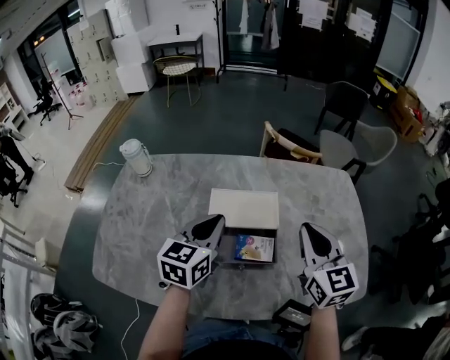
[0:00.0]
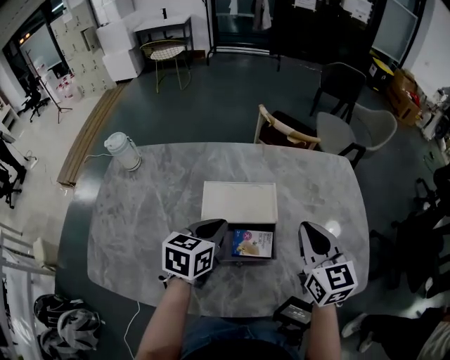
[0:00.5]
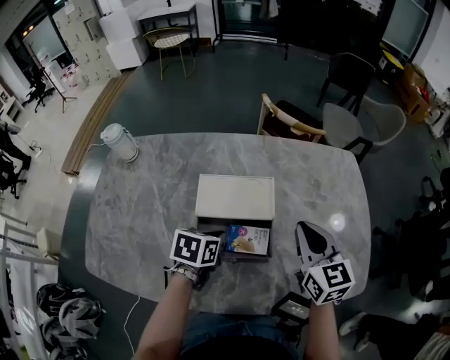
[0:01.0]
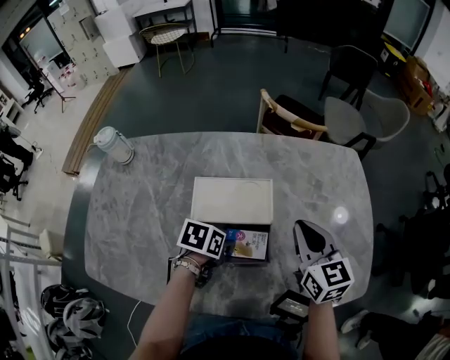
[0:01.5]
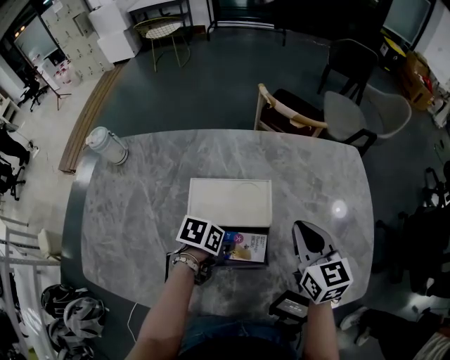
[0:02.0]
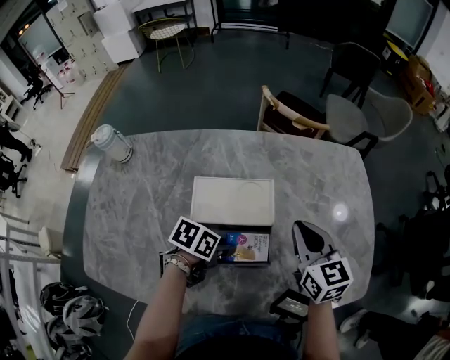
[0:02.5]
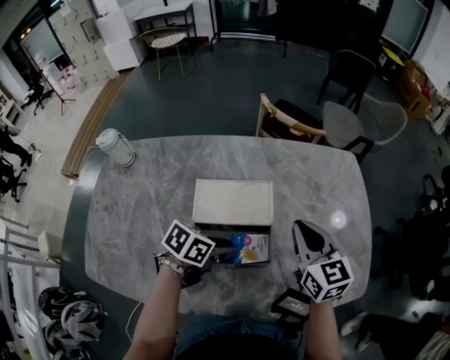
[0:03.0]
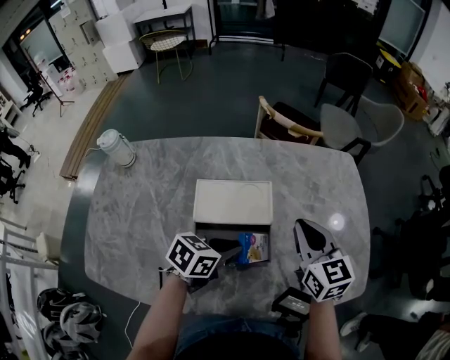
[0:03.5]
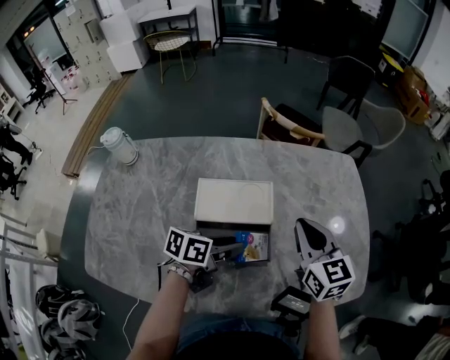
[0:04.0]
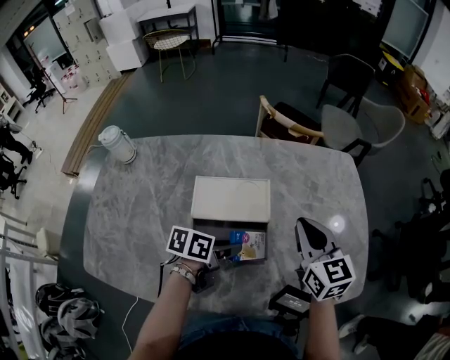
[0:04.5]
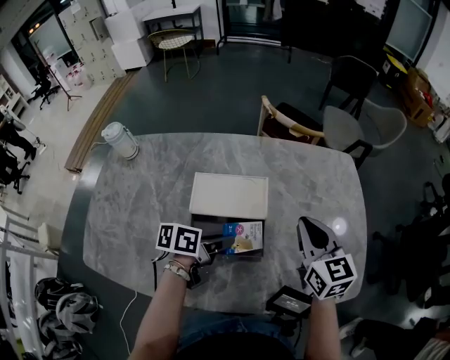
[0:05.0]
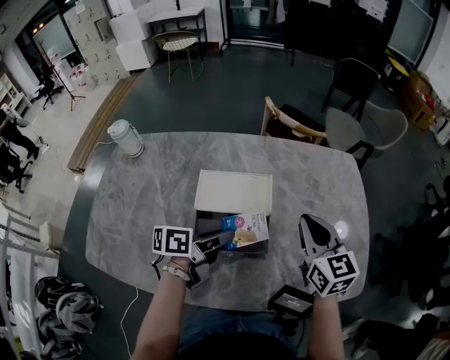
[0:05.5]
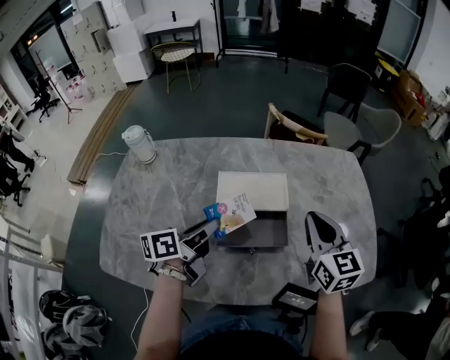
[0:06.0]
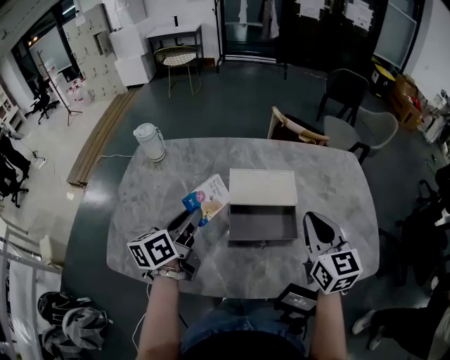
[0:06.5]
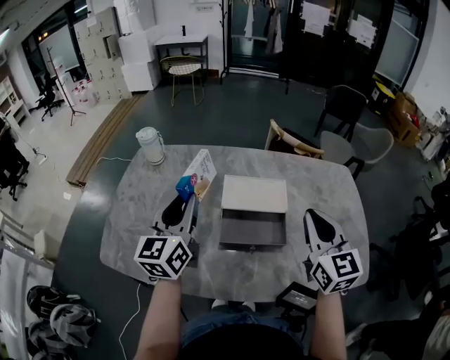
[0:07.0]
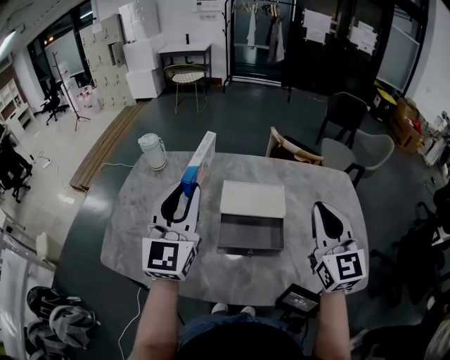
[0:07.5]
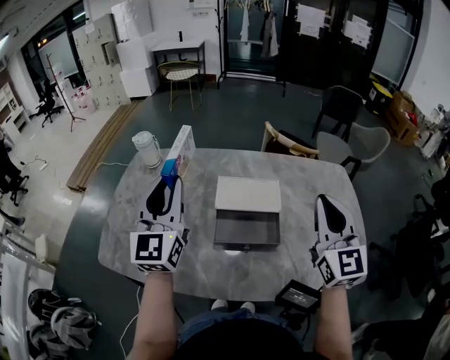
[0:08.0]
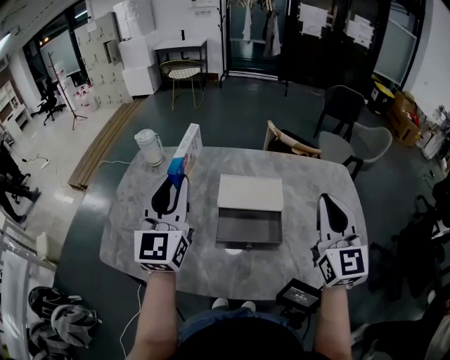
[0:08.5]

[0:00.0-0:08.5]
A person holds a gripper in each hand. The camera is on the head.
0:00.0 to 0:02.0: The right gripper is displaced downward by roughly 10 cm. Meanwhile the left gripper goes some 20 cm downward, tips its fingers downward by roughly 40 degrees, and opens up.
0:02.0 to 0:04.0: The left gripper is displaced upward by roughly 10 cm, changes its angle by approximately 30 degrees, and closes and opens again.
0:04.0 to 0:06.5: The left gripper moves to the left and upward, approximately 25 cm, and rotates roughly 40 degrees, while the right gripper travels backward by approximately 10 cm.
0:06.5 to 0:08.5: The right gripper moves upward and to the right, approximately 10 cm, and swivels approximately 20 degrees; the left gripper heads upward, covering roughly 15 cm, and rotates around the line of its fingers by roughly 50 degrees, clockwise from behind.

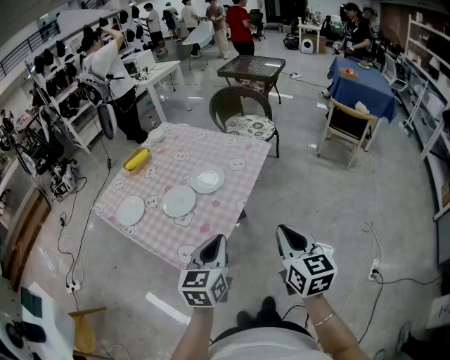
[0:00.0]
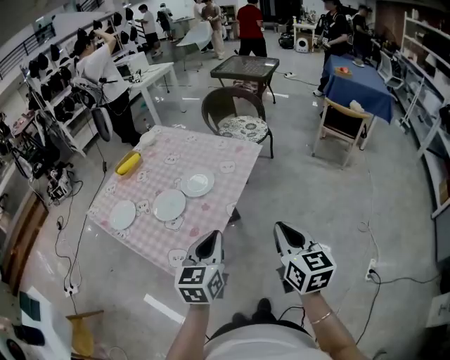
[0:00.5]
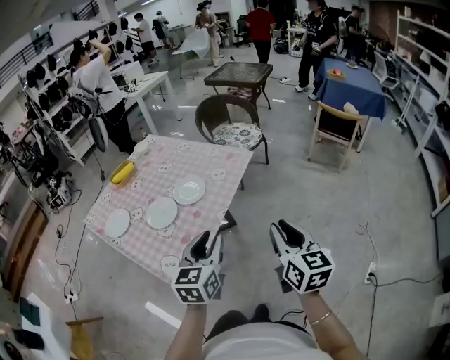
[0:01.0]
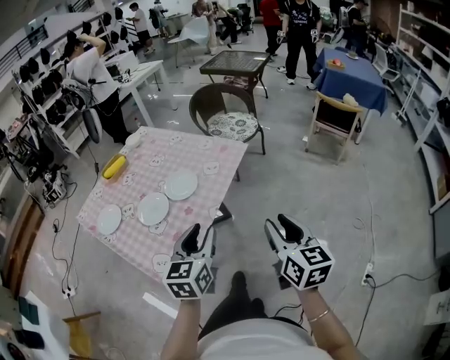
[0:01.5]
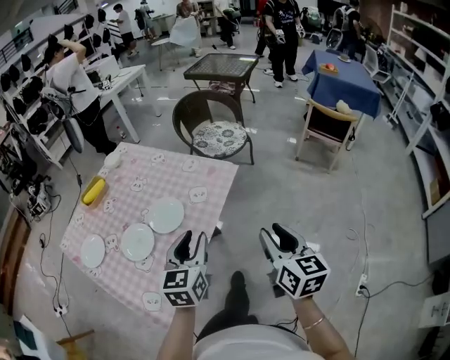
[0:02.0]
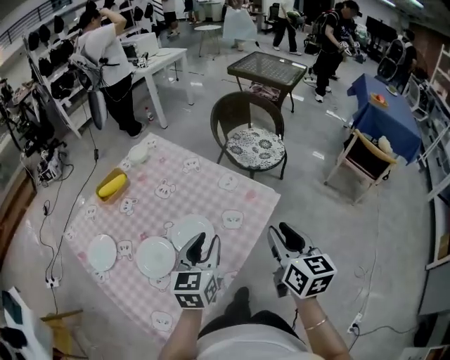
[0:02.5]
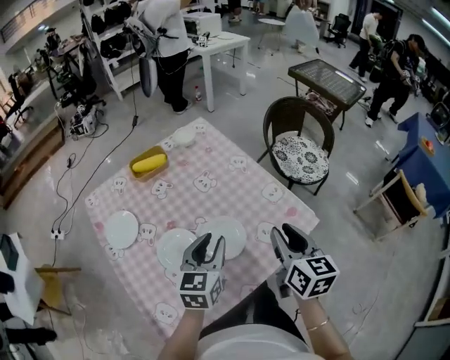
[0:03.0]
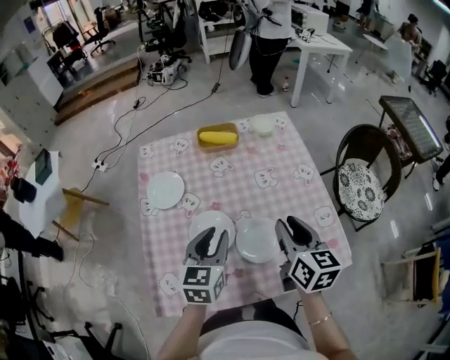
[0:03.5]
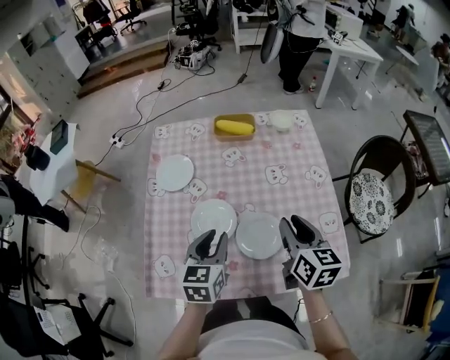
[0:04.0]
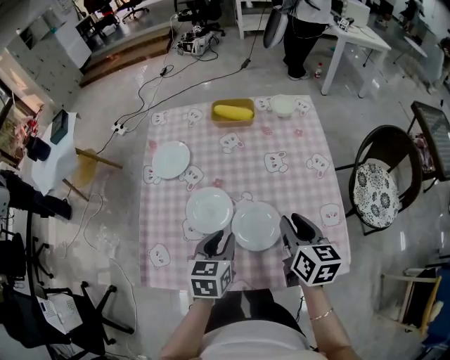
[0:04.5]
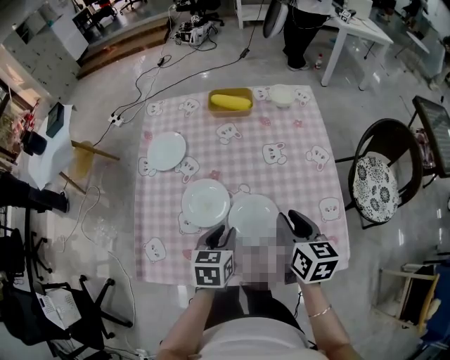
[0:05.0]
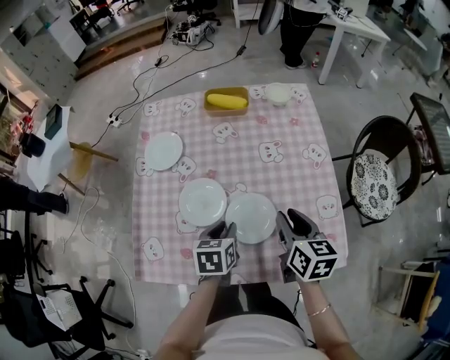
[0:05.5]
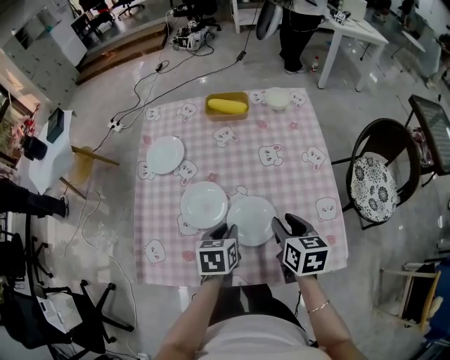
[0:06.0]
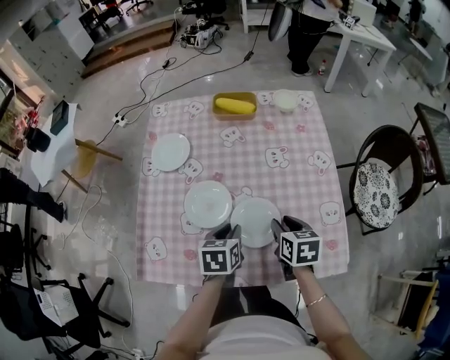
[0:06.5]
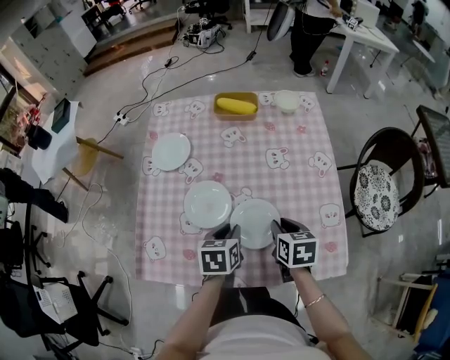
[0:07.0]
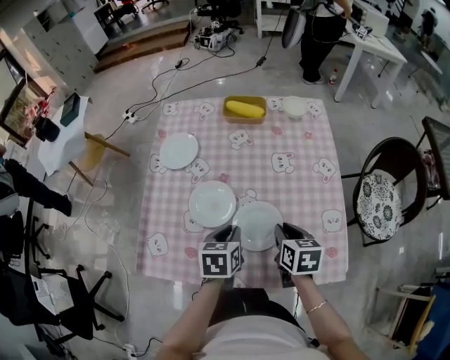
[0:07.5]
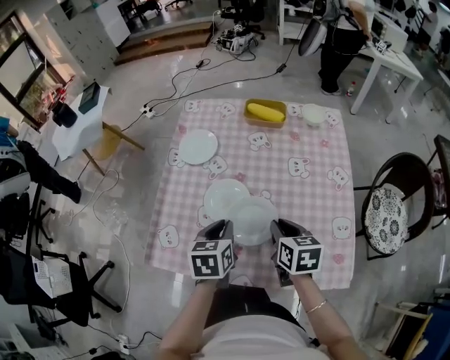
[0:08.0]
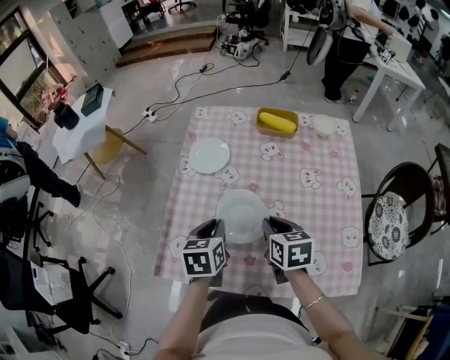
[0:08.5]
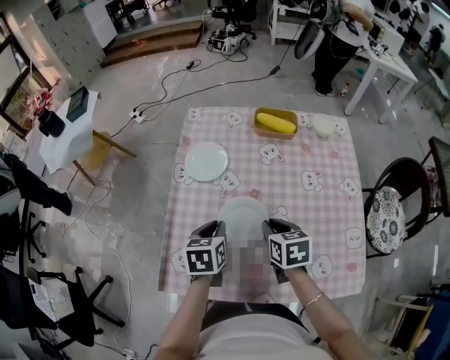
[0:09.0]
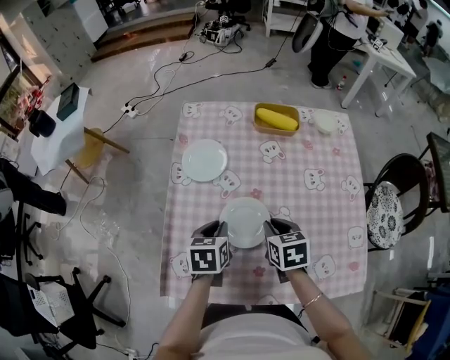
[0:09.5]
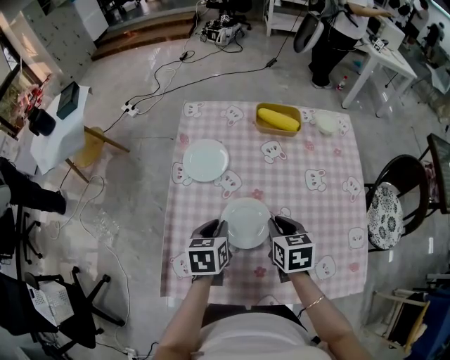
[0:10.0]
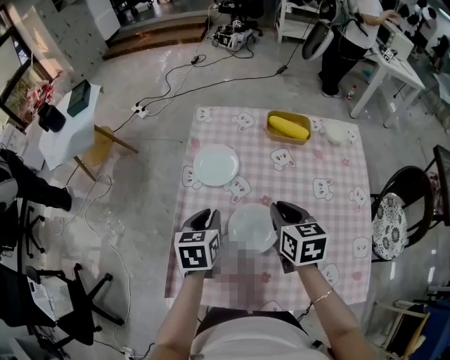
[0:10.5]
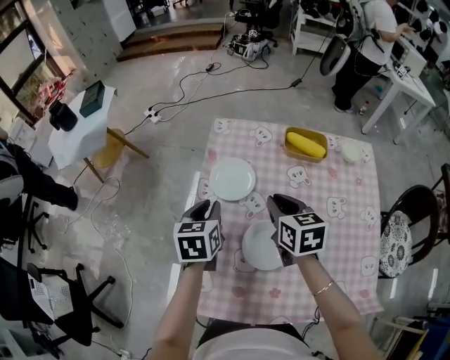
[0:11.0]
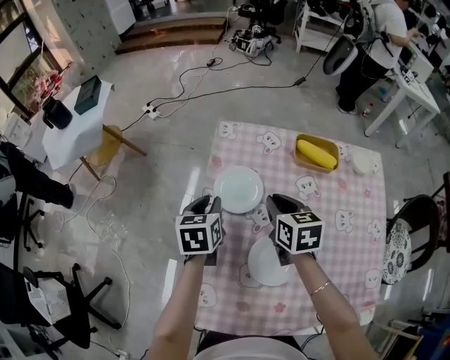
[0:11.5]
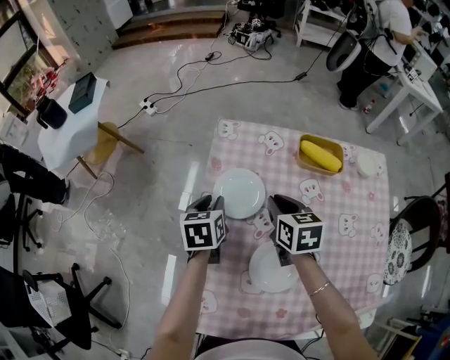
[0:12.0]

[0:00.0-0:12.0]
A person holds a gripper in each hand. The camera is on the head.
0:00.0 to 0:02.0: The right gripper shifts roughly 25 cm forward and to the right, and opens; the left gripper moves forward, some 20 cm, and opens.
0:02.0 to 0:04.0: The left gripper moves roughly 30 cm, and changes its angle by about 60 degrees; the right gripper ends up about 50 cm from where it was, and changes its angle by about 60 degrees.
0:04.0 to 0:06.0: The left gripper is displaced downward and to the right by some 10 cm, and changes its angle by approximately 20 degrees. Meanwhile the right gripper goes roughly 10 cm downward.
0:06.0 to 0:08.0: The right gripper shifts about 5 cm to the left. The left gripper travels upward and to the left by about 10 cm.
0:08.0 to 0:10.0: The two grippers go about 15 cm forward and to the left.
0:10.0 to 0:12.0: The two grippers go approximately 25 cm forward and to the left.

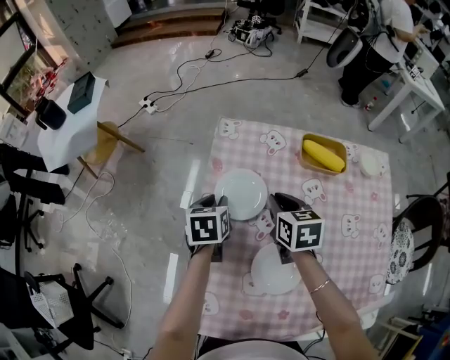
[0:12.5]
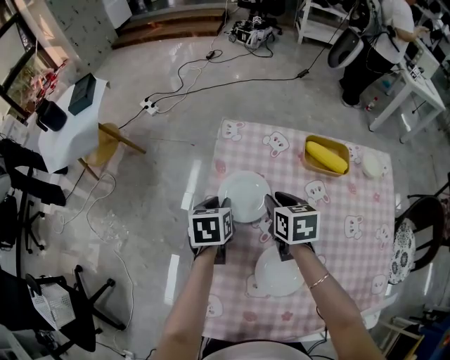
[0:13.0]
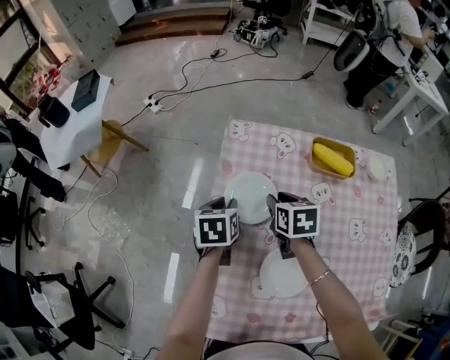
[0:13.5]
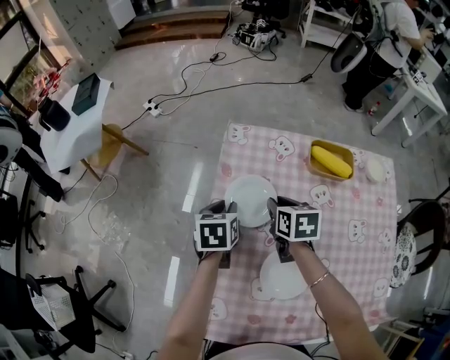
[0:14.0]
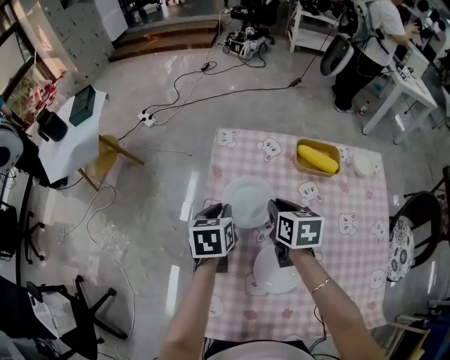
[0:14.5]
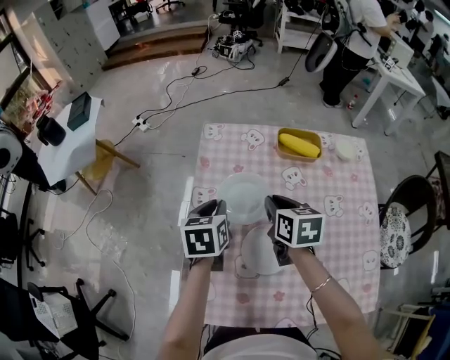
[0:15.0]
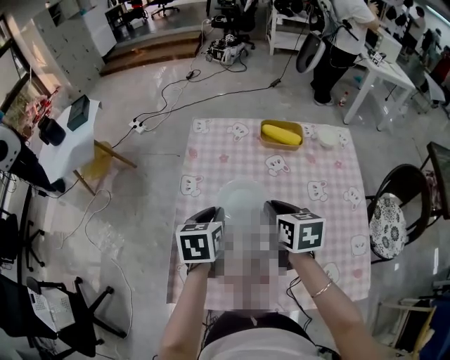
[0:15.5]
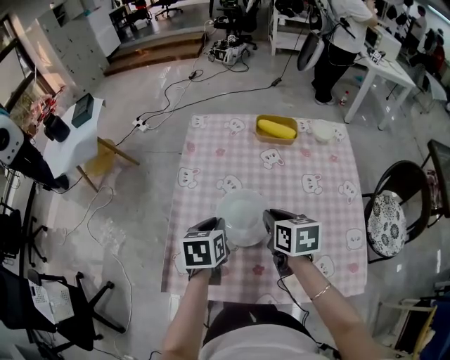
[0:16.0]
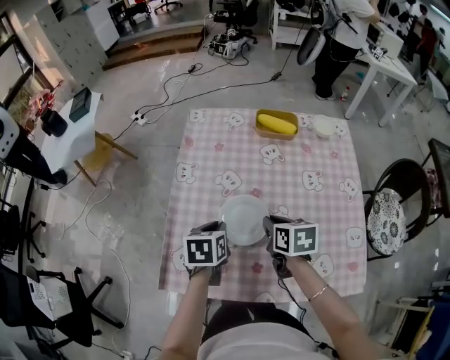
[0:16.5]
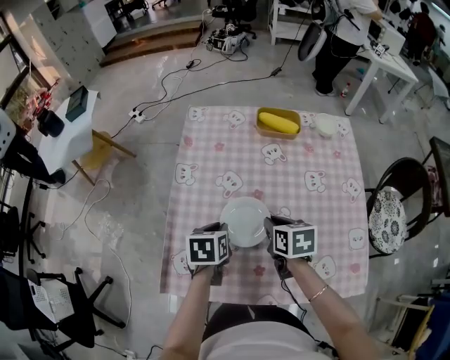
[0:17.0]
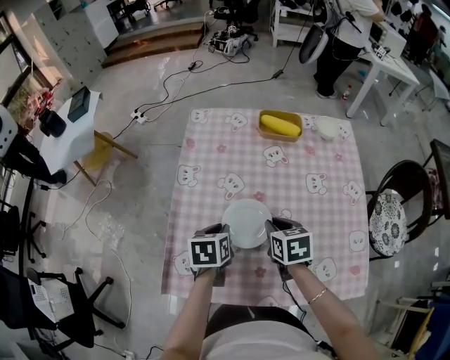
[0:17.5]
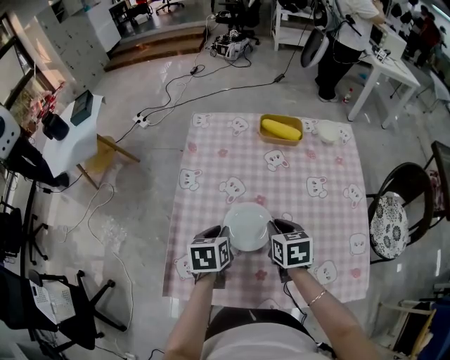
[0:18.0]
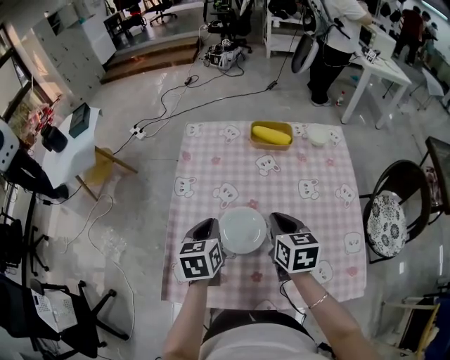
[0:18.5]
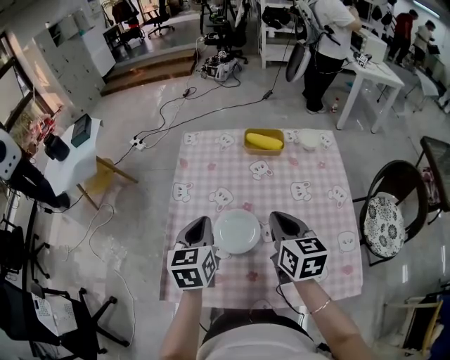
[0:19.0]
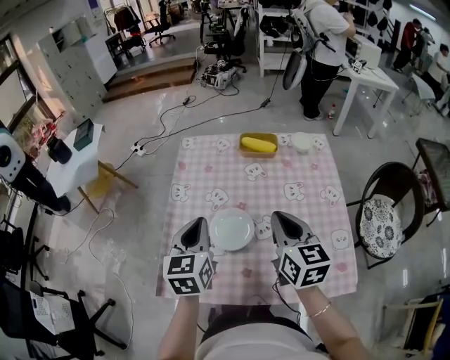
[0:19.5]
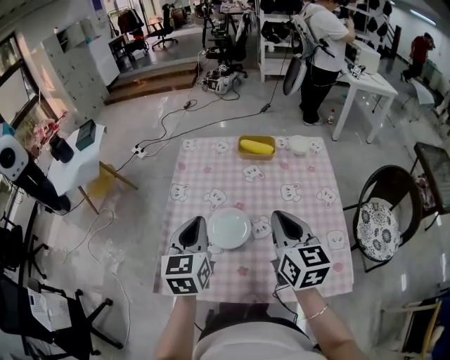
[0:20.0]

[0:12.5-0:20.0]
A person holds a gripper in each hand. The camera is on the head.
0:12.5 to 0:14.5: There are only small adjustments of the grippers.
0:14.5 to 0:16.5: Both grippers move backward and to the right, roughly 25 cm.
0:16.5 to 0:18.0: The grippers move only a little.
0:18.0 to 0:20.0: The left gripper is displaced upward by roughly 20 cm, and angles its fingers upward, by approximately 30 degrees. Meanwhile the right gripper moves upward and backward, approximately 20 cm, and angles its fingers upward, by roughly 30 degrees.
